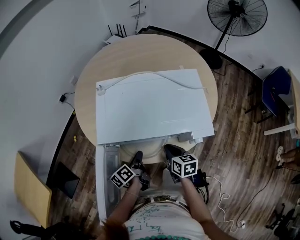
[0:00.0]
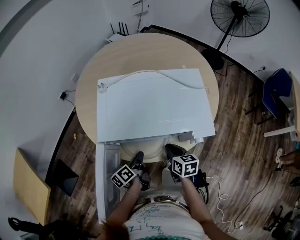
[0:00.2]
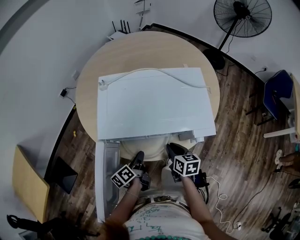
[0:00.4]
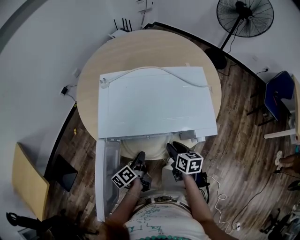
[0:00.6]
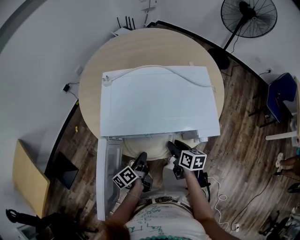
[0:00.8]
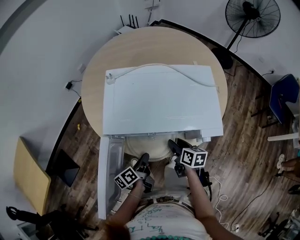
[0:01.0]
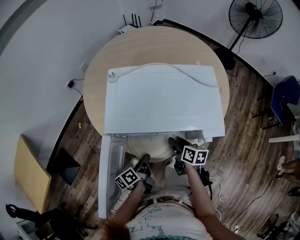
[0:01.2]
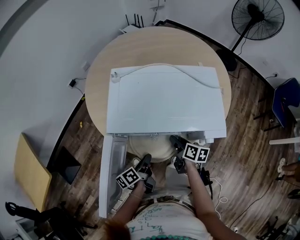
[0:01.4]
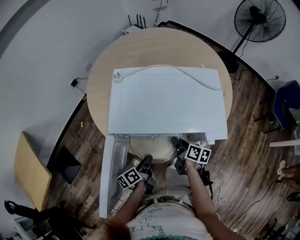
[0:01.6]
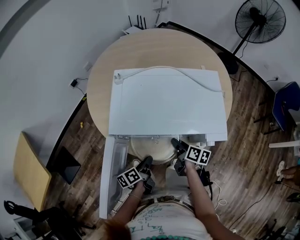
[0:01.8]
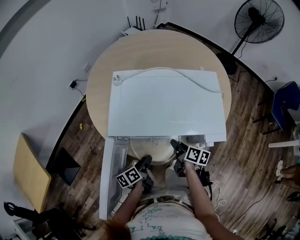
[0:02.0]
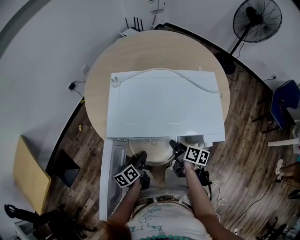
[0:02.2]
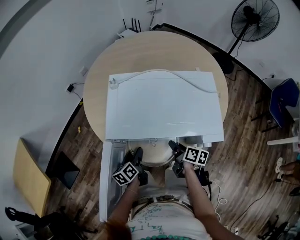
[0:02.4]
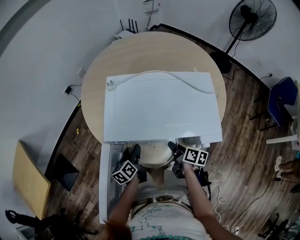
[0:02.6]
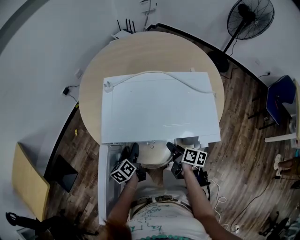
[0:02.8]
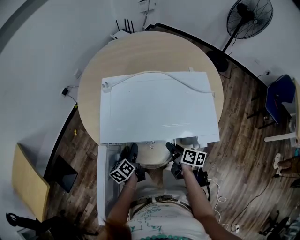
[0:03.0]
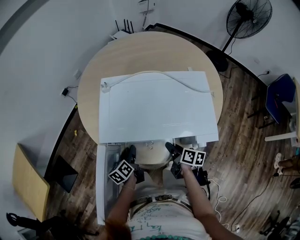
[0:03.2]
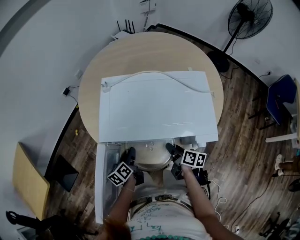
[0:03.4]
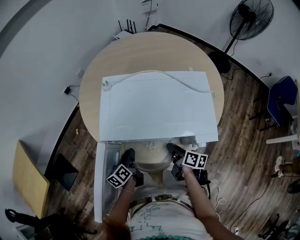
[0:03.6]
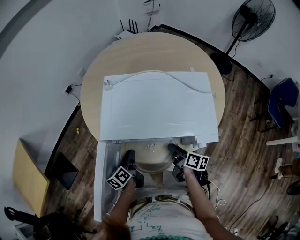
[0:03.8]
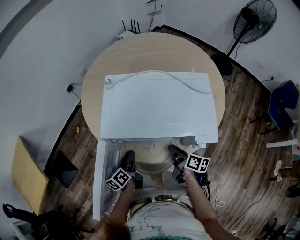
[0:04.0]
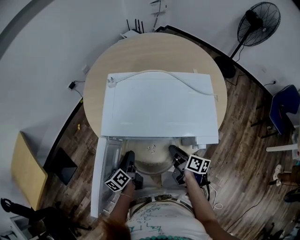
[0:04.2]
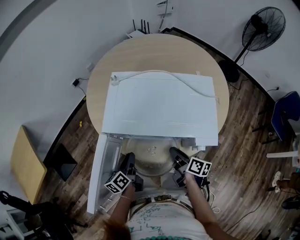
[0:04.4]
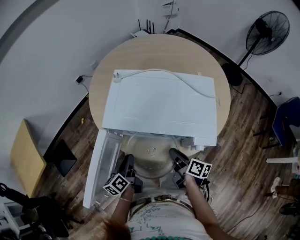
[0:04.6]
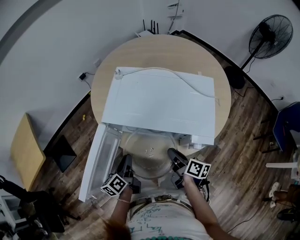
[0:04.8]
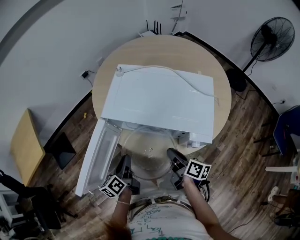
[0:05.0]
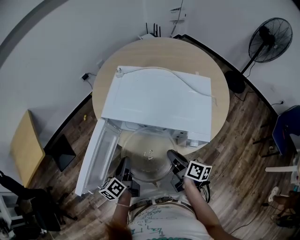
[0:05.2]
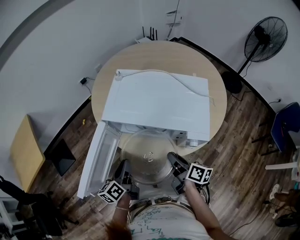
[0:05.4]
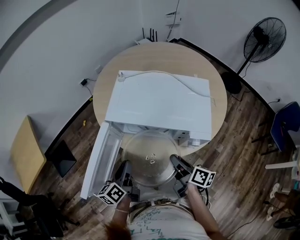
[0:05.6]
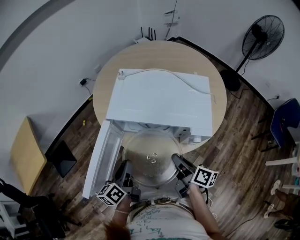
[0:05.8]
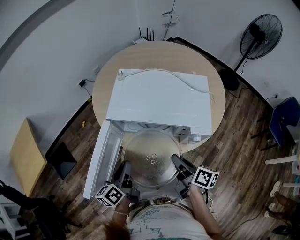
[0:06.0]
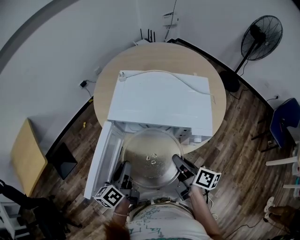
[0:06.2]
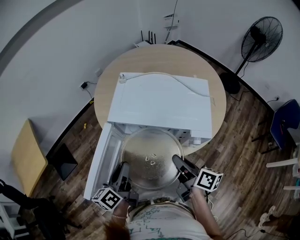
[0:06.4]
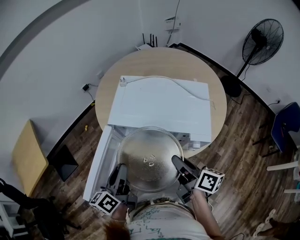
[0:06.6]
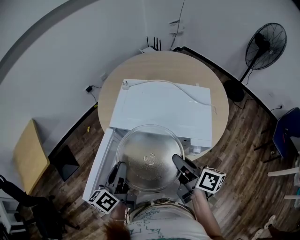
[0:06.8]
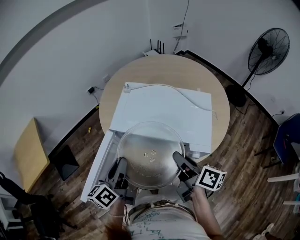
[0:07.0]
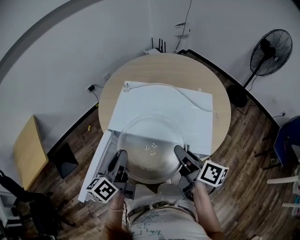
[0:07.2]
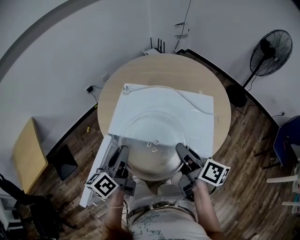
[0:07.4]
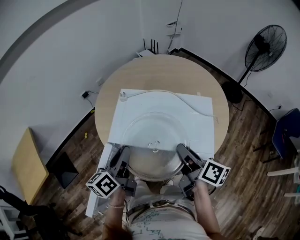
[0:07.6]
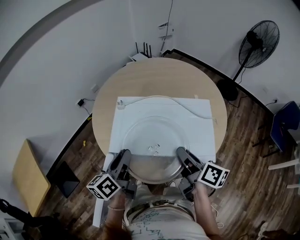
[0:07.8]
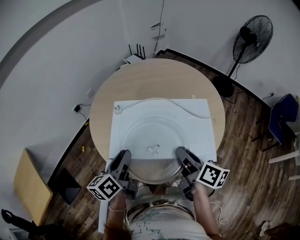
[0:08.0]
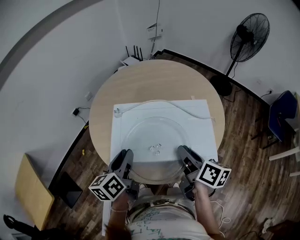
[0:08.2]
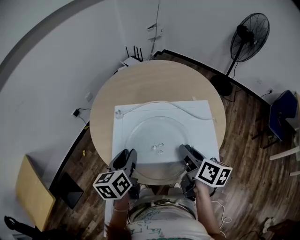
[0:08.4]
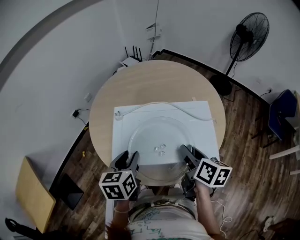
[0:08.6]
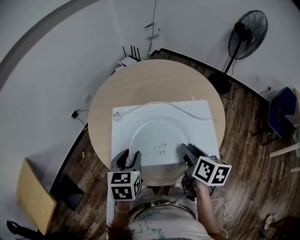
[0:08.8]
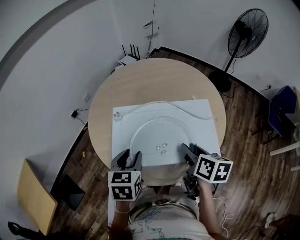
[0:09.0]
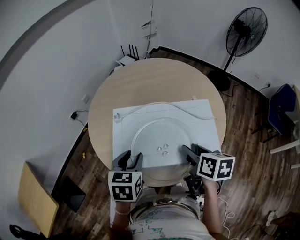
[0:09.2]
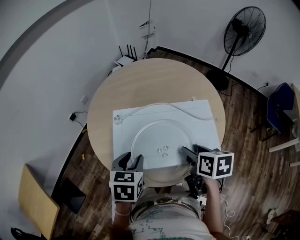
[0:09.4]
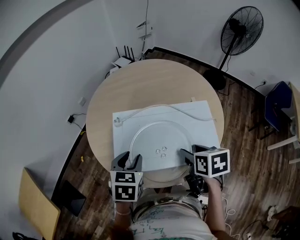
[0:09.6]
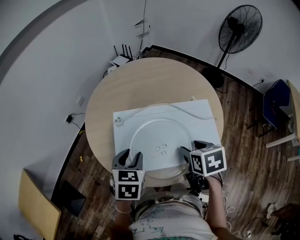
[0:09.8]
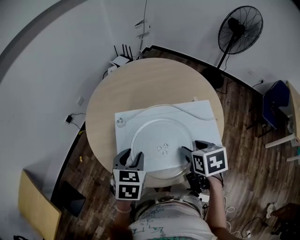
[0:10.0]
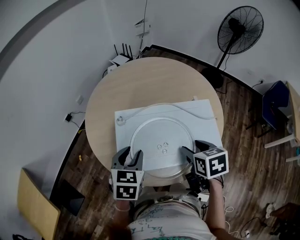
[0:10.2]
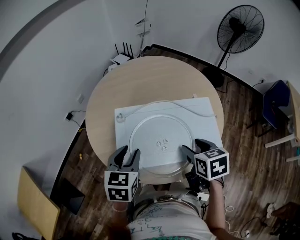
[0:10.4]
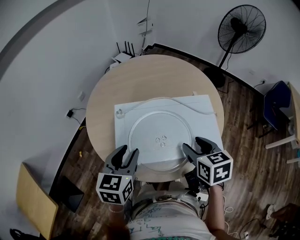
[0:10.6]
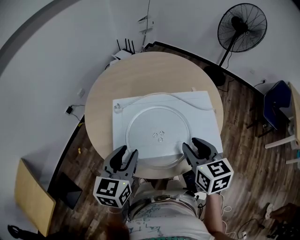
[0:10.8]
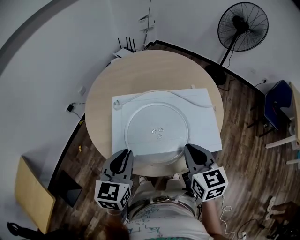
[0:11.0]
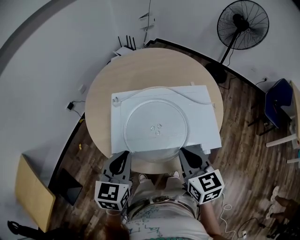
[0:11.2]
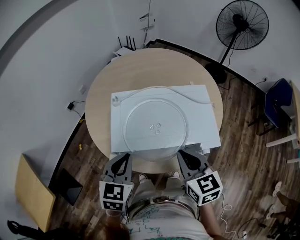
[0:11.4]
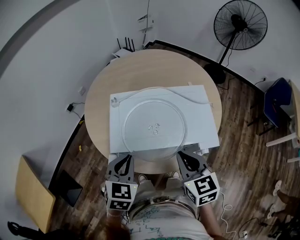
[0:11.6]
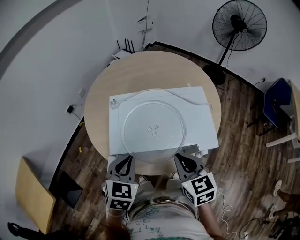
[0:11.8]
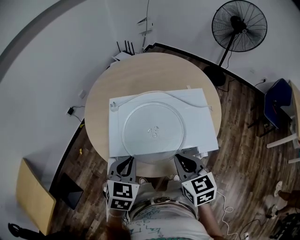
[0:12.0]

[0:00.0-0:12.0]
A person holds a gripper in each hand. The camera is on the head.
0:00.0 to 0:01.6: The left gripper moves roughly 5 cm, while the right gripper changes its angle by some 30 degrees.
0:01.6 to 0:03.0: The left gripper shifts roughly 10 cm forward, changes its angle by approximately 20 degrees, and opens.
0:03.0 to 0:04.4: The right gripper shifts by some 5 cm. Meanwhile the left gripper travels backward and upward by about 10 cm, and closes.
0:04.4 to 0:06.0: The grippers both shift upward and backward by some 15 cm.
0:06.0 to 0:07.6: The grippers both shift forward and upward by some 15 cm.
0:07.6 to 0:09.0: The left gripper is displaced forward by some 5 cm, and tips its fingers downward by about 30 degrees, while the right gripper swivels about 30 degrees, and opens its fingers.
0:09.0 to 0:10.4: The right gripper changes its angle by about 30 degrees.
0:10.4 to 0:12.0: Both grippers travel together backward, approximately 10 cm. The right gripper rotates approximately 20 degrees, and closes up. The left gripper closes its fingers.

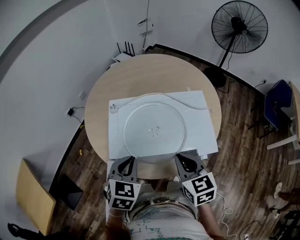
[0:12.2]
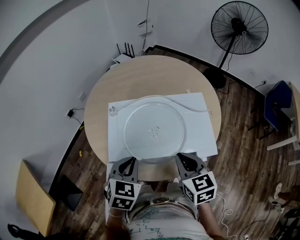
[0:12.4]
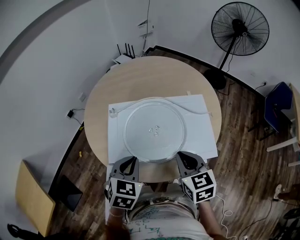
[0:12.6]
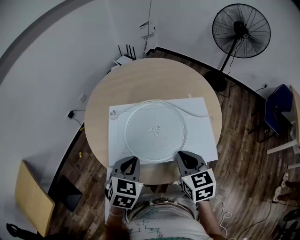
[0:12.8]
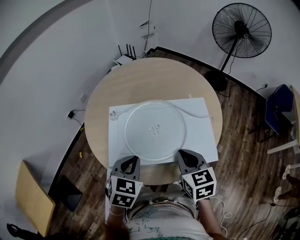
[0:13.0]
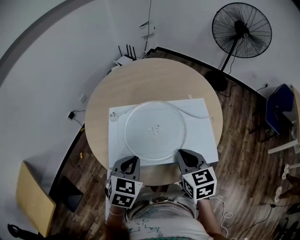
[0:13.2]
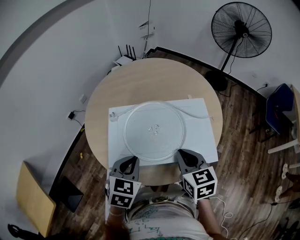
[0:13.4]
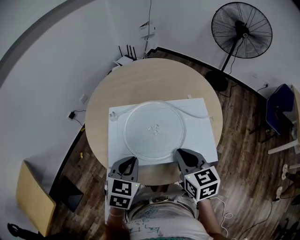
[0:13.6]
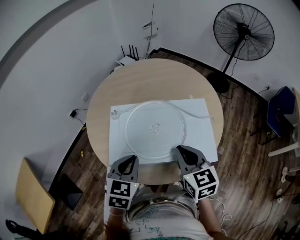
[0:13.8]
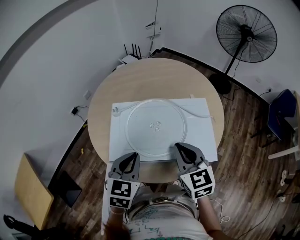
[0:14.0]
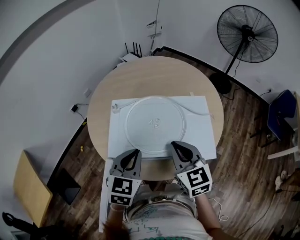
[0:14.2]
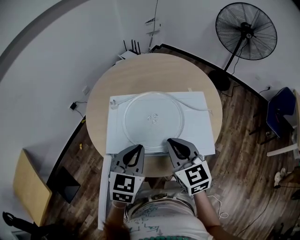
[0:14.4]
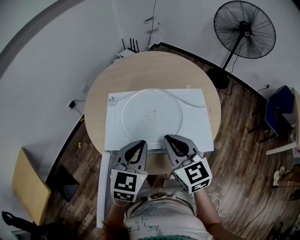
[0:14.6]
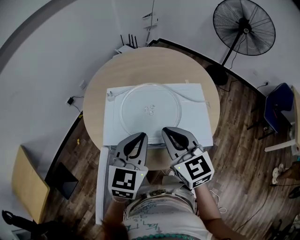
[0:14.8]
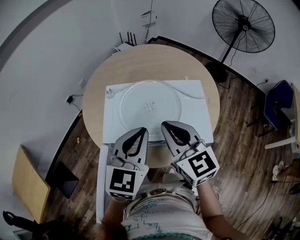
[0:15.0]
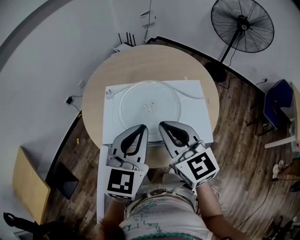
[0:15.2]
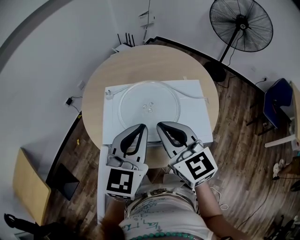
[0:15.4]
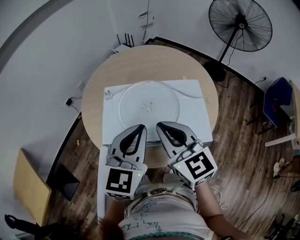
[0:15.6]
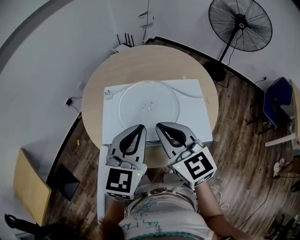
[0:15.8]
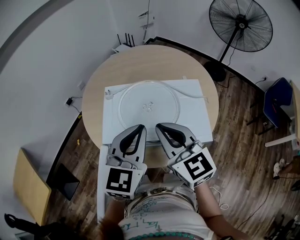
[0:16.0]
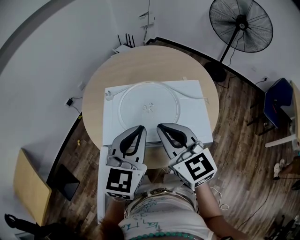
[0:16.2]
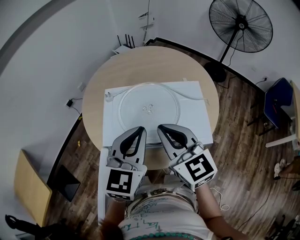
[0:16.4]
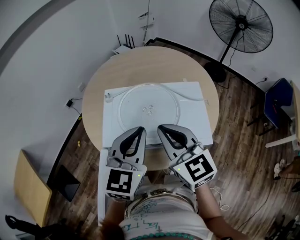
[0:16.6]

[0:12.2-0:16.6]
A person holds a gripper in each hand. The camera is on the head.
0:12.2 to 0:13.6: The right gripper goes approximately 5 cm forward.
0:13.6 to 0:15.2: The left gripper shifts some 15 cm upward and to the right, and swivels approximately 30 degrees. Meanwhile the right gripper moves upward, approximately 10 cm, and turns by some 30 degrees.
0:15.2 to 0:16.6: The grippers make only small movements.

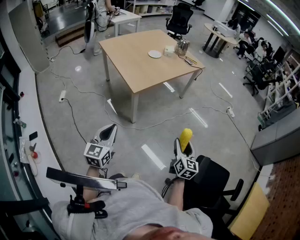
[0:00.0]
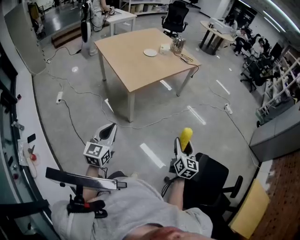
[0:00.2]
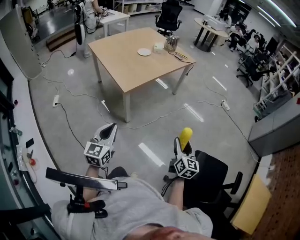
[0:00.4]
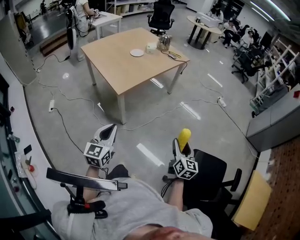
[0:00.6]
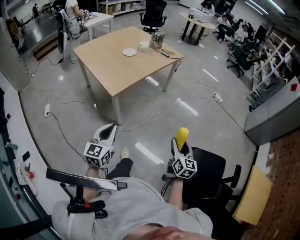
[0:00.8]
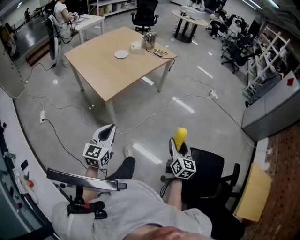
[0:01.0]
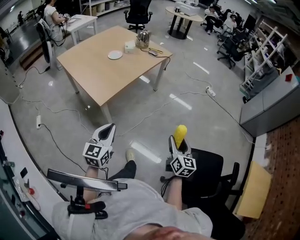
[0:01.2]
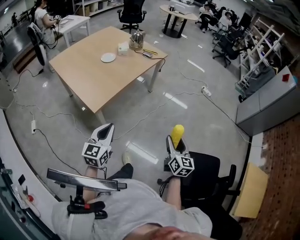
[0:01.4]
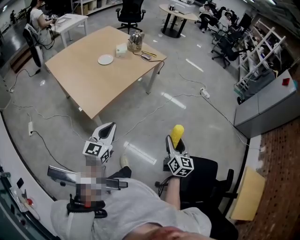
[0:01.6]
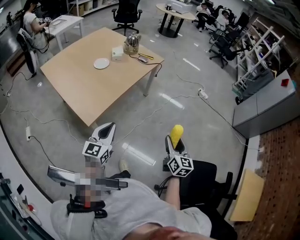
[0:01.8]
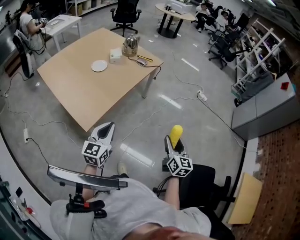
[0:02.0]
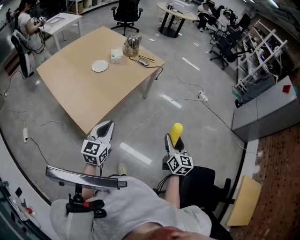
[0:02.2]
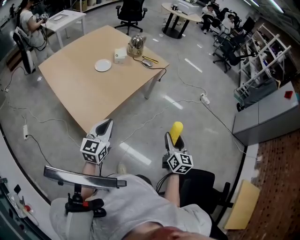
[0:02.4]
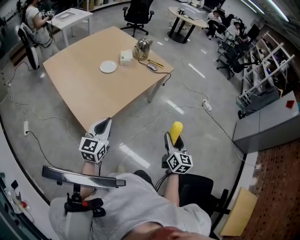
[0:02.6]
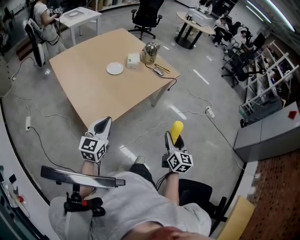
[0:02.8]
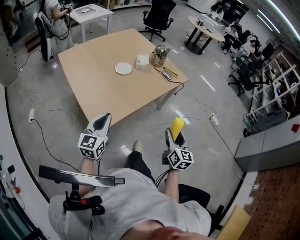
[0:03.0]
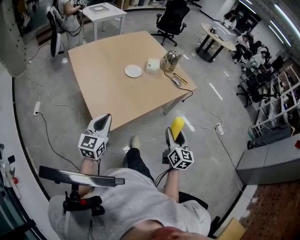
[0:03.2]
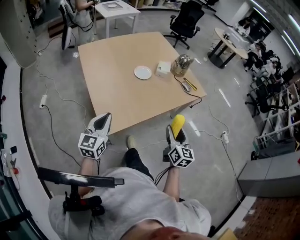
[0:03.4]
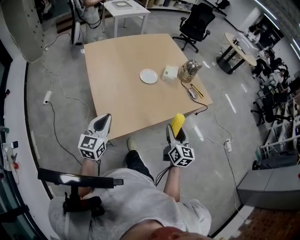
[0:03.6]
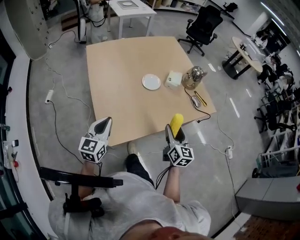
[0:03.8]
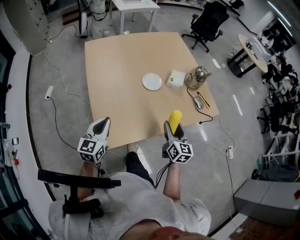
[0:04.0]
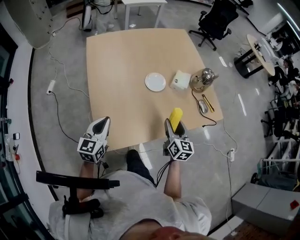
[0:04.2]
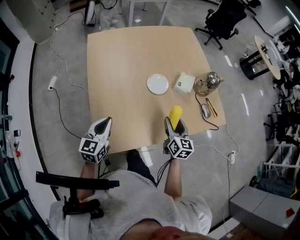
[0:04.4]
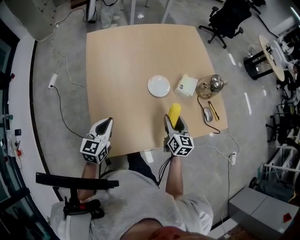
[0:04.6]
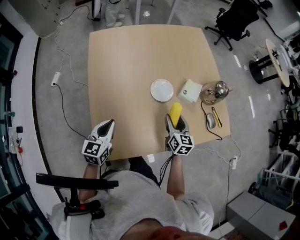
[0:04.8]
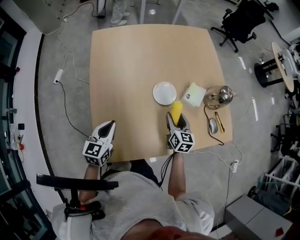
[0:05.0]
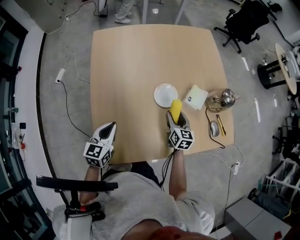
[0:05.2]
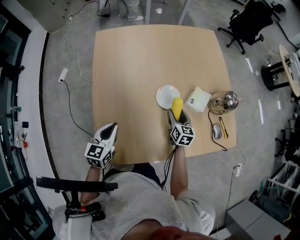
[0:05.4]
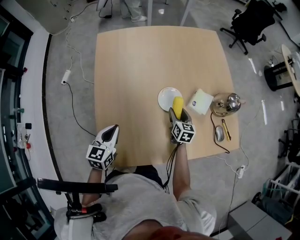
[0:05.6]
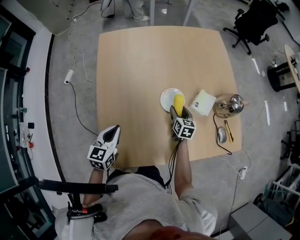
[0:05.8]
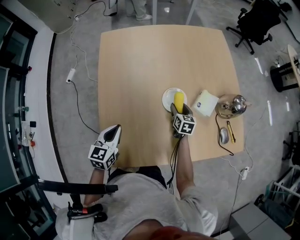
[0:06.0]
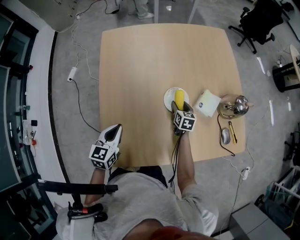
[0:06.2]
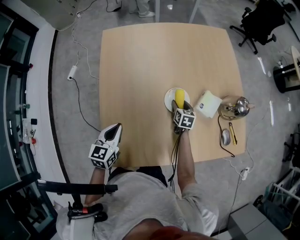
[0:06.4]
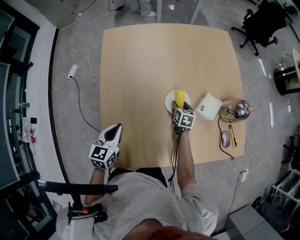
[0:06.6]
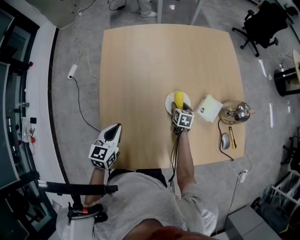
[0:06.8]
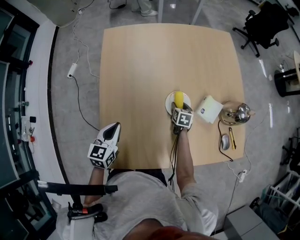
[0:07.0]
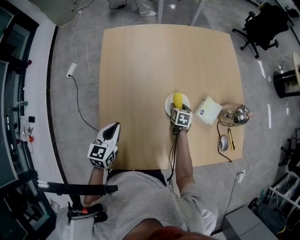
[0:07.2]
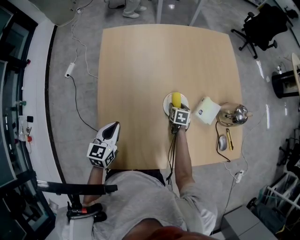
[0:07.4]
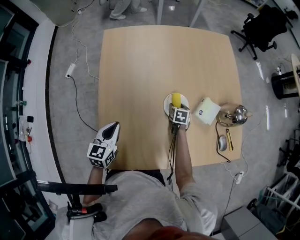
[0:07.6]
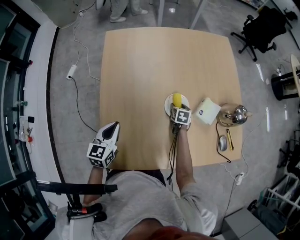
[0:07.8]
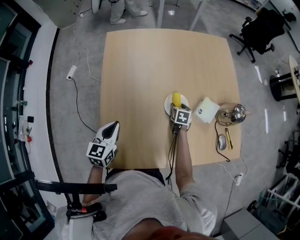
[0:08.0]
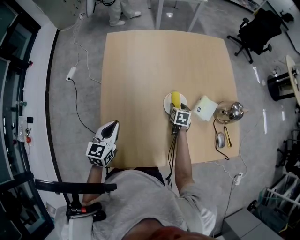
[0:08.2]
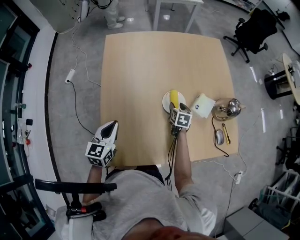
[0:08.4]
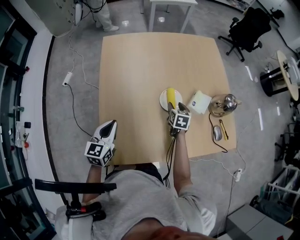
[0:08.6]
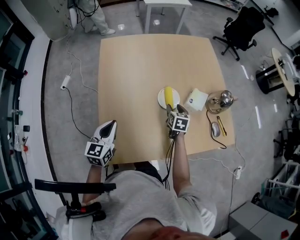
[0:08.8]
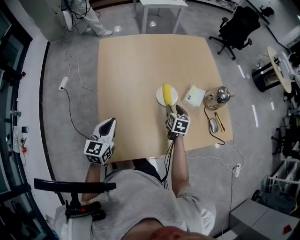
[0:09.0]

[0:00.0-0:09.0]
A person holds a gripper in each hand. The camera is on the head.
0:00.0 to 0:01.6: The left gripper goes roughly 30 cm forward and to the right; the right gripper moves forward and to the right, roughly 20 cm.
0:01.6 to 0:03.0: Both grippers travel together forward and to the left, approximately 25 cm.
0:03.0 to 0:04.4: The left gripper moves about 25 cm, and swivels some 30 degrees. The right gripper changes place by about 40 cm, and turns by about 30 degrees.
0:04.4 to 0:06.0: The left gripper heads forward, covering approximately 10 cm. Meanwhile the right gripper heads forward and downward, covering about 25 cm, and turns by about 20 degrees.
0:06.0 to 0:07.6: The right gripper goes roughly 5 cm downward.
0:07.6 to 0:09.0: The left gripper goes roughly 10 cm backward and upward; the right gripper moves upward and backward, approximately 20 cm.
